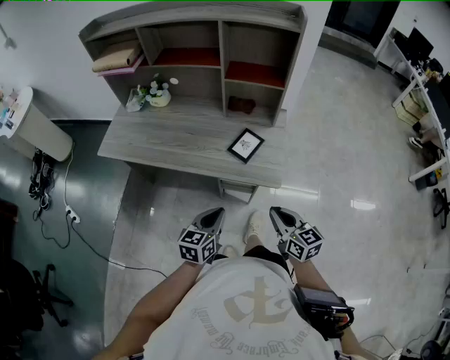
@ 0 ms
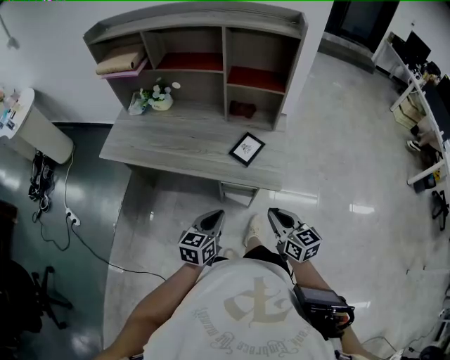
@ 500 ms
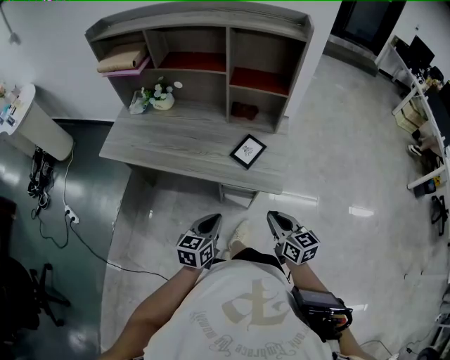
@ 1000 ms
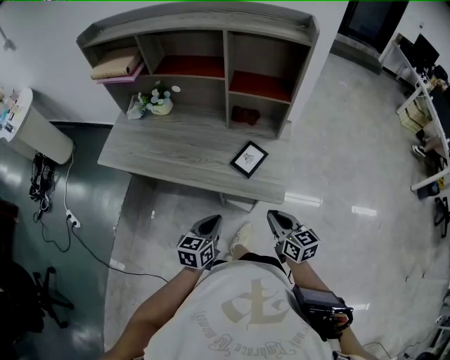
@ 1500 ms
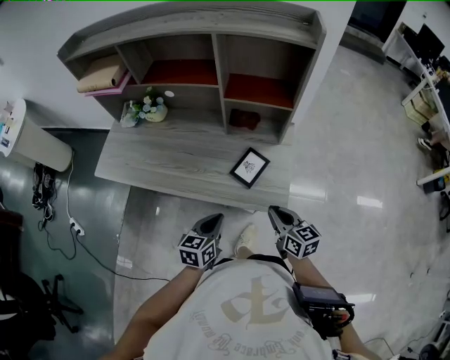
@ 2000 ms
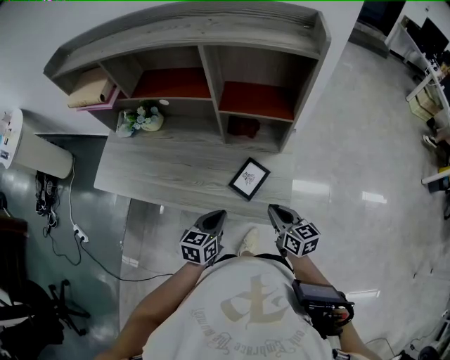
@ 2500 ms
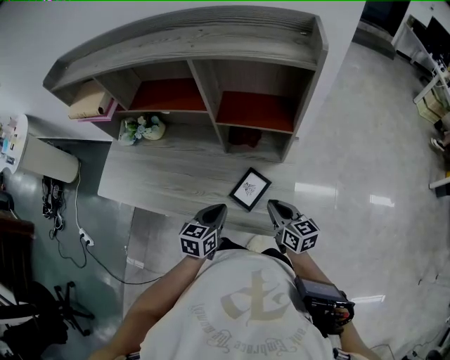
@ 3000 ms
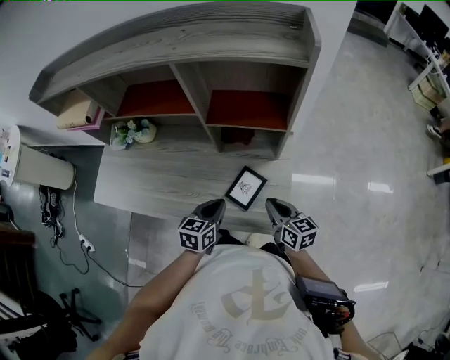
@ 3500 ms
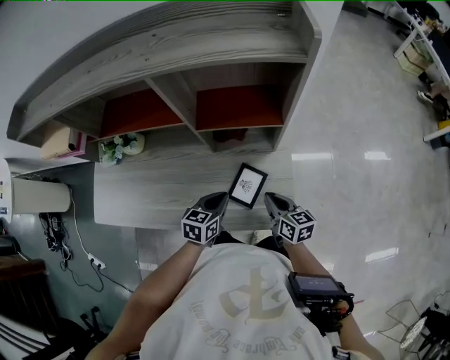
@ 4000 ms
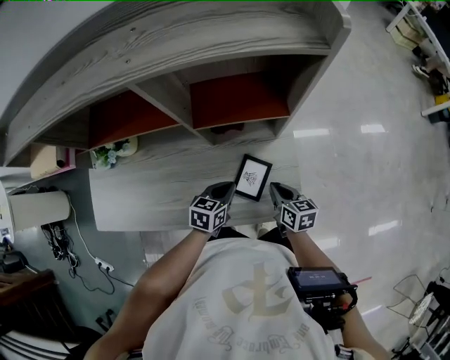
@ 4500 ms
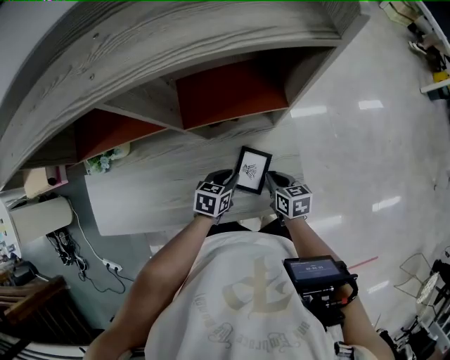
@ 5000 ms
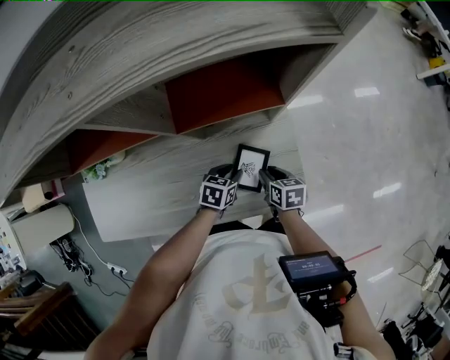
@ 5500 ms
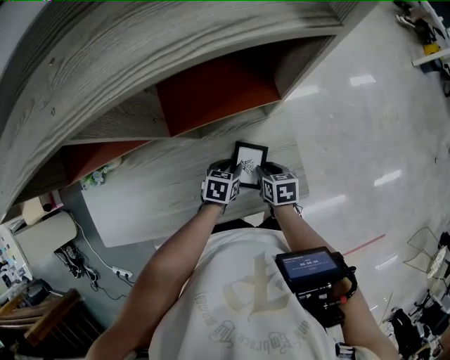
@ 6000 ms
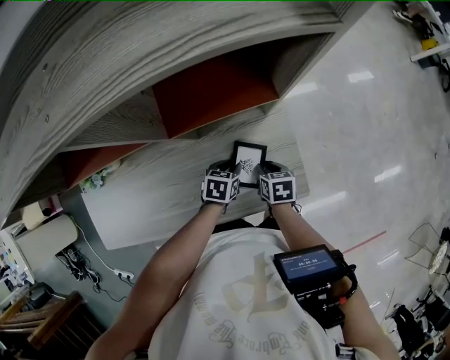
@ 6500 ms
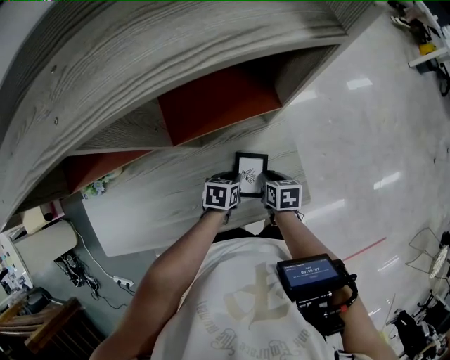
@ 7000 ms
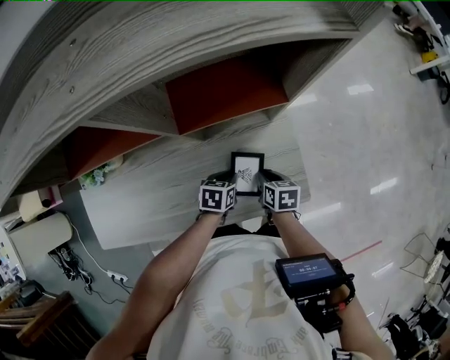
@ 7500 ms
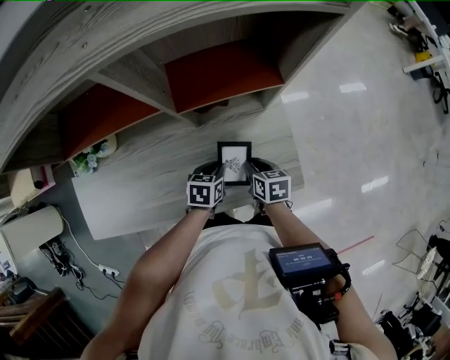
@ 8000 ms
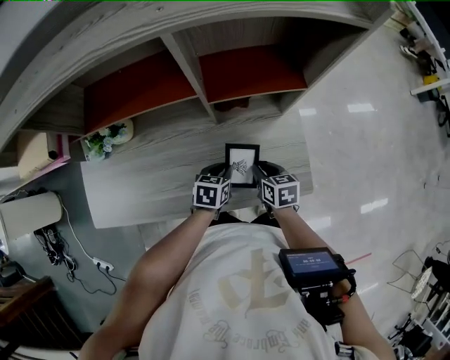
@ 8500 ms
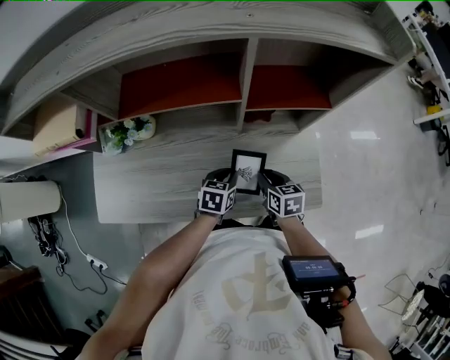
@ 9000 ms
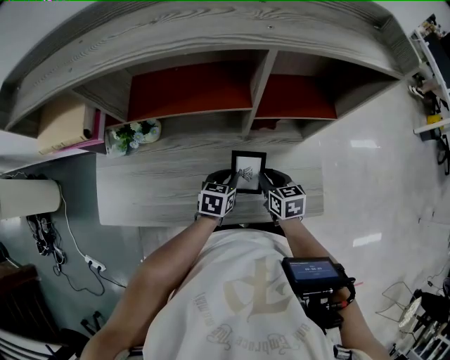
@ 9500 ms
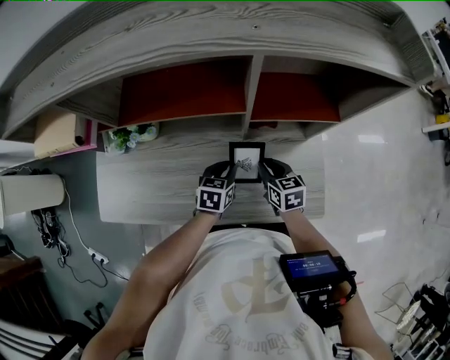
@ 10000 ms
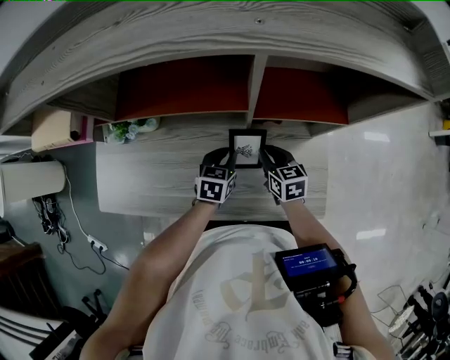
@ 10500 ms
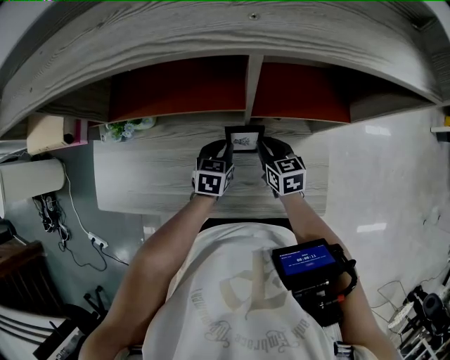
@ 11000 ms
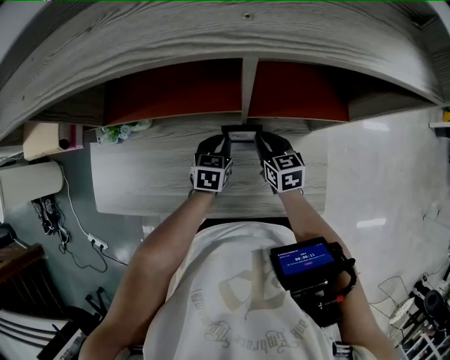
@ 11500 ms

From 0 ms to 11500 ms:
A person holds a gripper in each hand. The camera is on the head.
From 0 ms to 2000 ms: Both grippers move forward, some 15 cm.
From 2000 ms to 4000 ms: The grippers both shift forward by some 20 cm. The left gripper rotates approximately 20 degrees.
From 4000 ms to 6000 ms: The left gripper moves downward and forward, about 15 cm, turns by approximately 30 degrees, and opens, while the right gripper heads downward, covering roughly 10 cm, tilts its fingers approximately 30 degrees downward, and opens up.
From 6000 ms to 7500 ms: There are only small adjustments of the grippers.
From 7500 ms to 9500 ms: The grippers both shift to the left and upward by about 15 cm. The right gripper turns by some 30 degrees.
From 9500 ms to 11500 ms: The grippers both shift forward by some 10 cm.

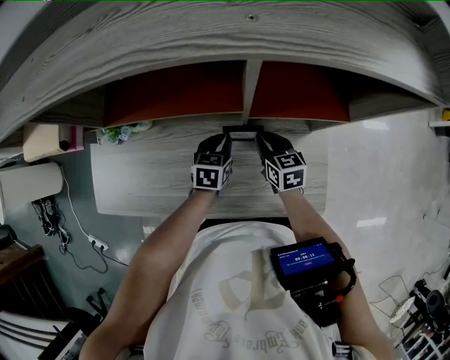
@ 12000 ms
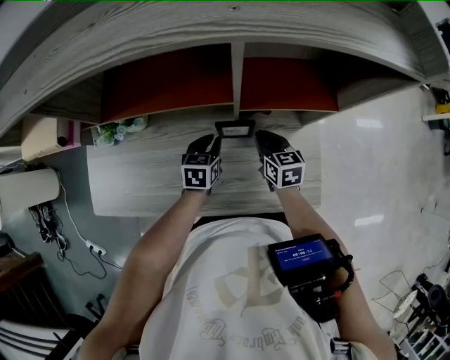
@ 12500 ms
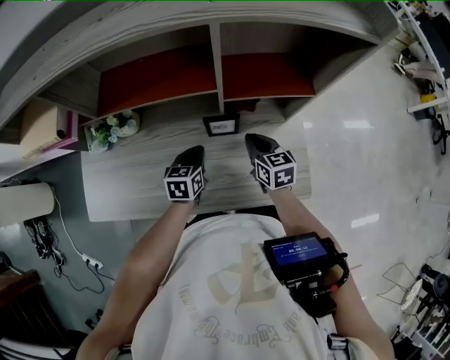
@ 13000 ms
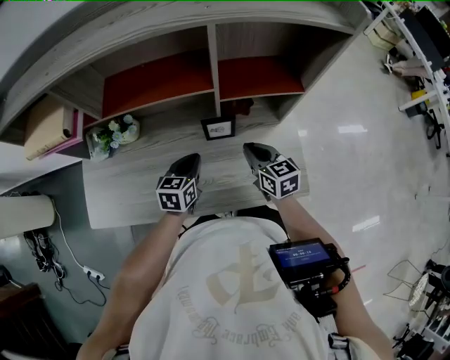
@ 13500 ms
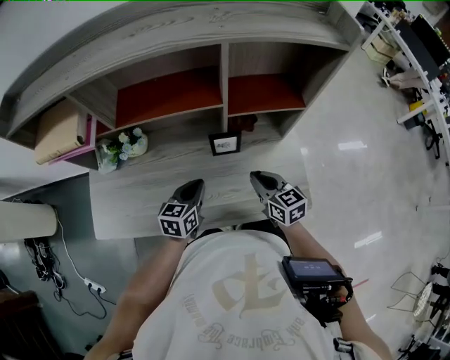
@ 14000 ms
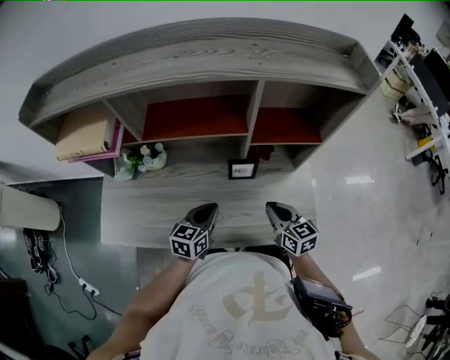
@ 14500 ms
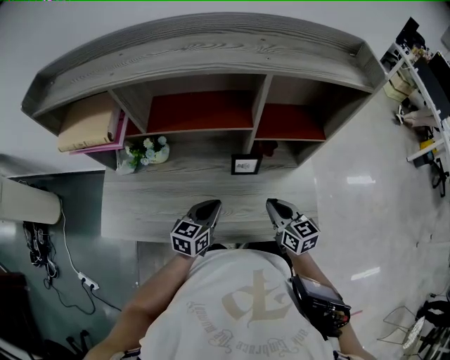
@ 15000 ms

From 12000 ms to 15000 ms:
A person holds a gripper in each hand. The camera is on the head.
From 12000 ms to 13500 ms: The two grippers go approximately 15 cm backward and upward.
From 13500 ms to 15000 ms: The grippers both shift backward by roughly 5 cm.

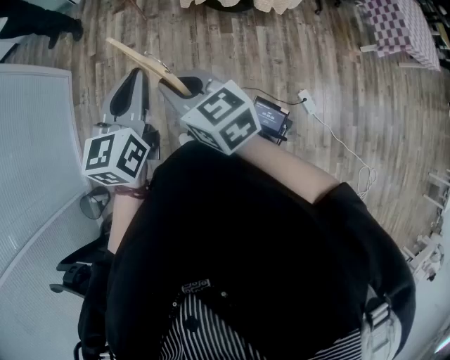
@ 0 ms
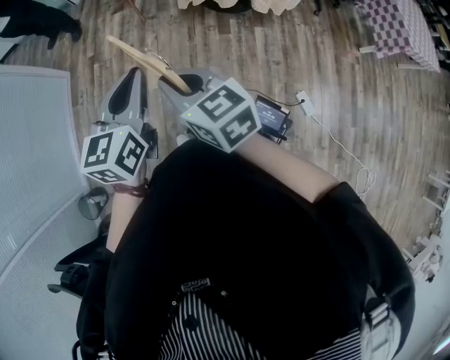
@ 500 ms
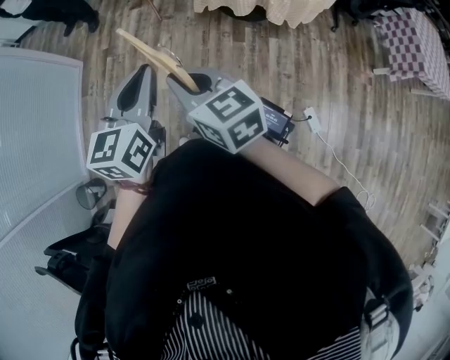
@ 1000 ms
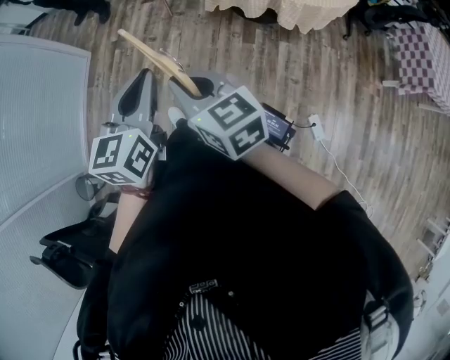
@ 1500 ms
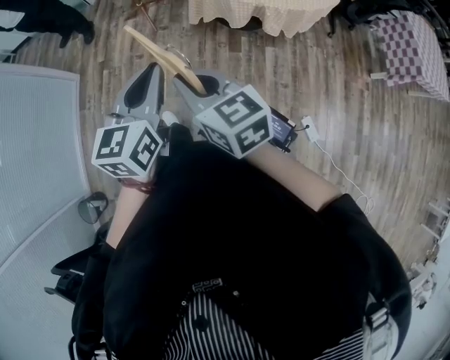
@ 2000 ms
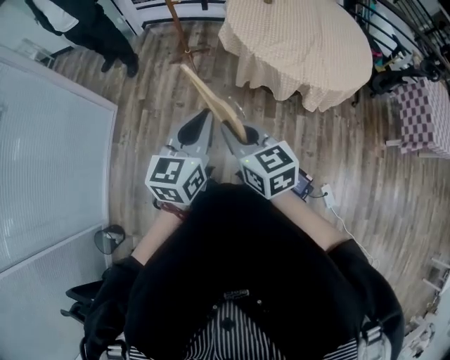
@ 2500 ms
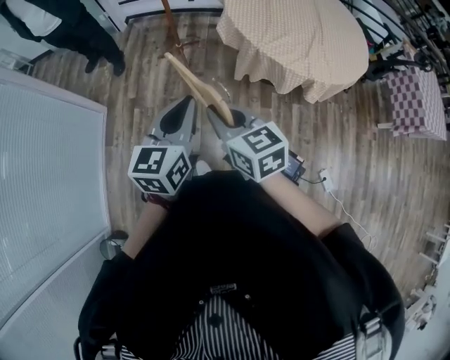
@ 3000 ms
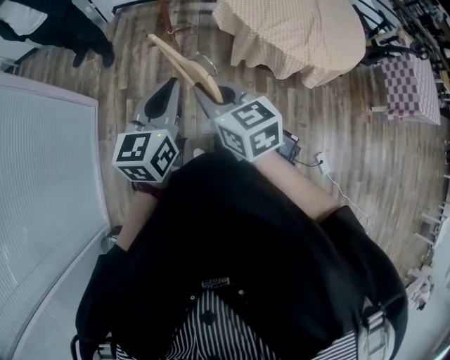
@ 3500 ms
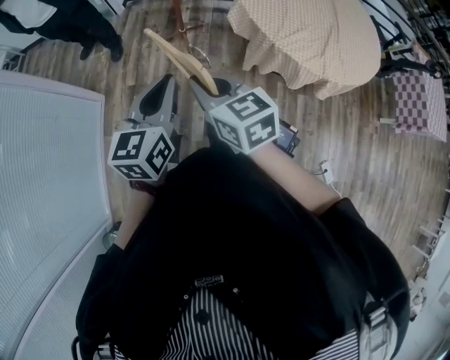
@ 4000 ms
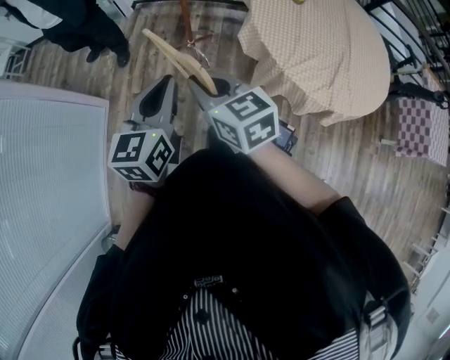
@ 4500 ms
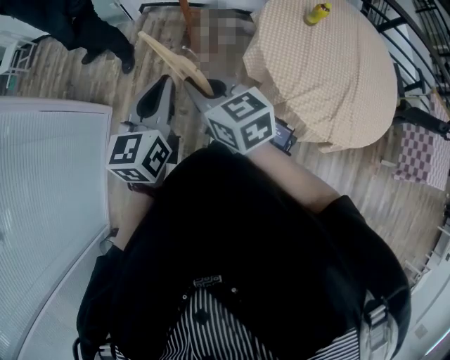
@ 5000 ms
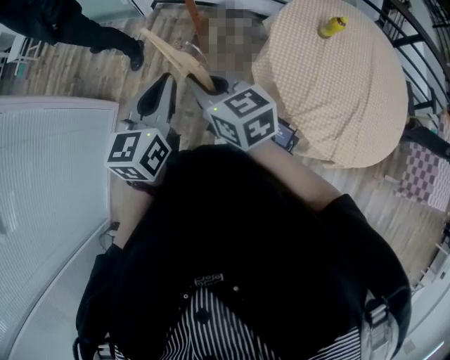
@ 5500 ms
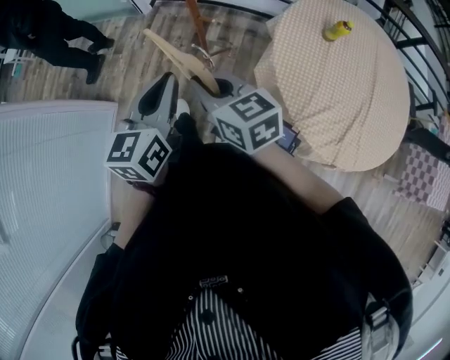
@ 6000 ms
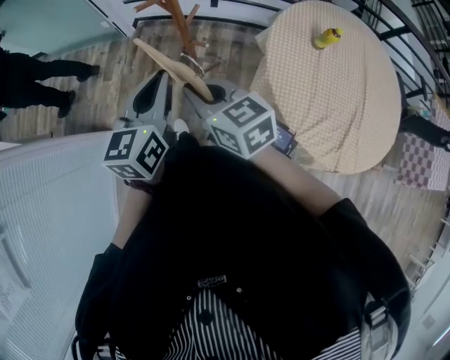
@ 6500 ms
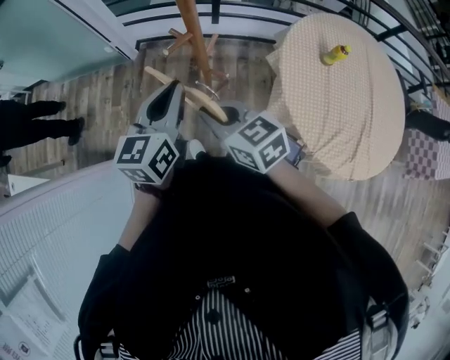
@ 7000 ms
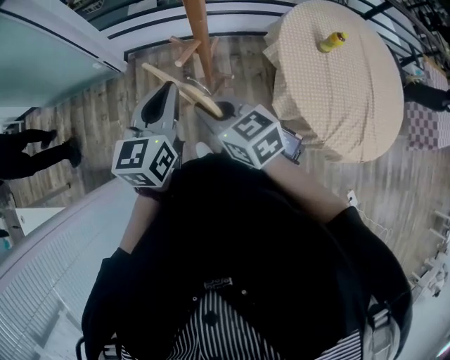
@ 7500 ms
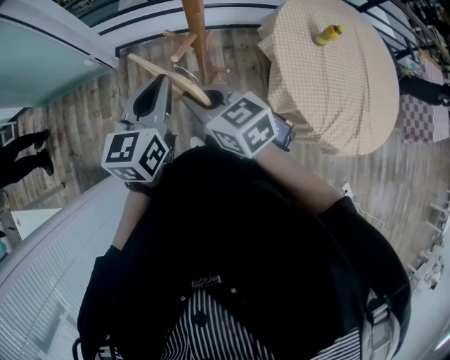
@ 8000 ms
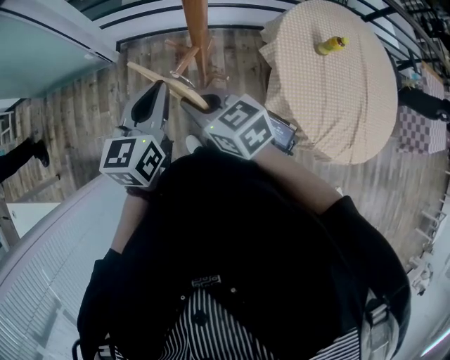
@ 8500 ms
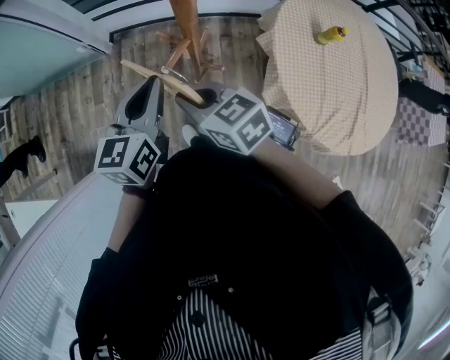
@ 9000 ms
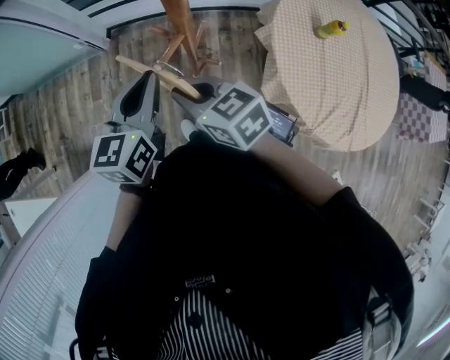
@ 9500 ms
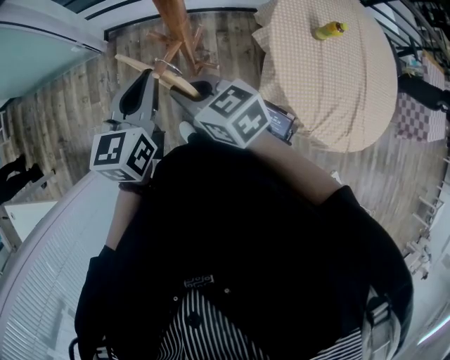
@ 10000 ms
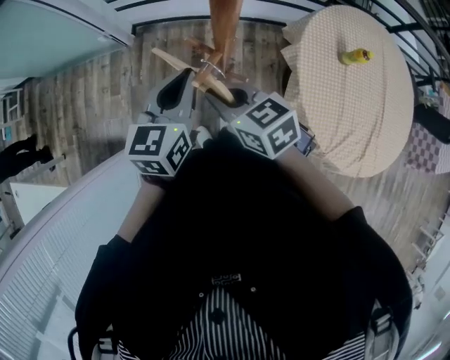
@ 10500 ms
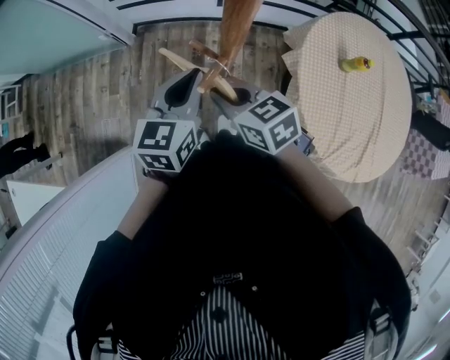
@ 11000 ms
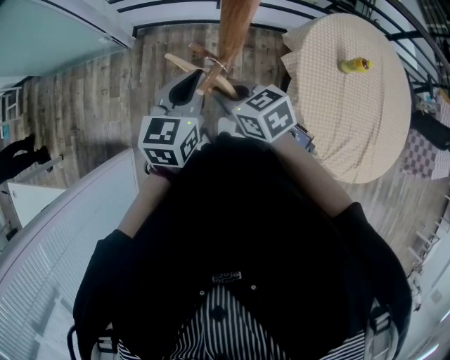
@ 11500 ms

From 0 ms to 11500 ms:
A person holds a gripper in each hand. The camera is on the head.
From 0 ms to 2000 ms: Both grippers travel together to the right and forward, some 15 cm.
From 2000 ms to 4000 ms: Both grippers are carried forward and to the left, approximately 50 cm.
From 4000 ms to 6000 ms: The two grippers travel together, forward, roughly 40 cm.
From 6000 ms to 7500 ms: The left gripper goes about 30 cm forward. The right gripper moves forward and to the left, approximately 25 cm.
From 7500 ms to 9500 ms: The grippers make only small movements.
From 9500 ms to 11500 ms: The right gripper travels downward and forward by approximately 10 cm. The left gripper moves roughly 5 cm.

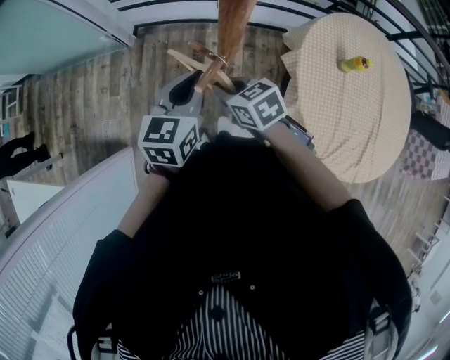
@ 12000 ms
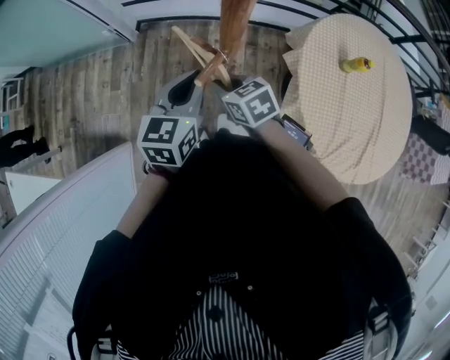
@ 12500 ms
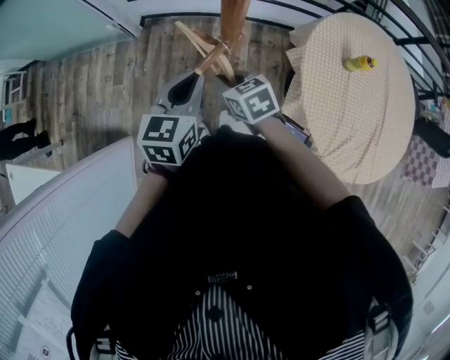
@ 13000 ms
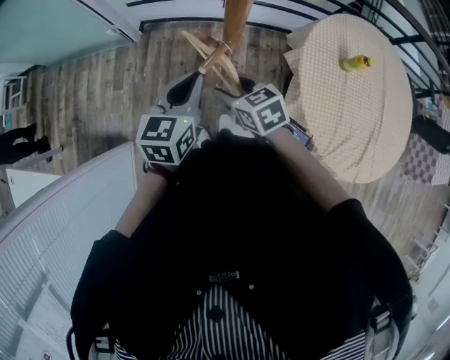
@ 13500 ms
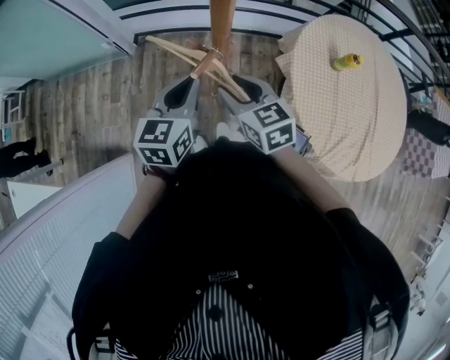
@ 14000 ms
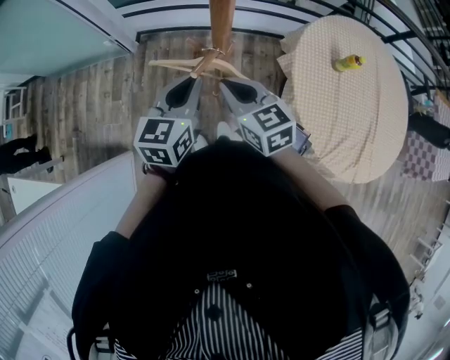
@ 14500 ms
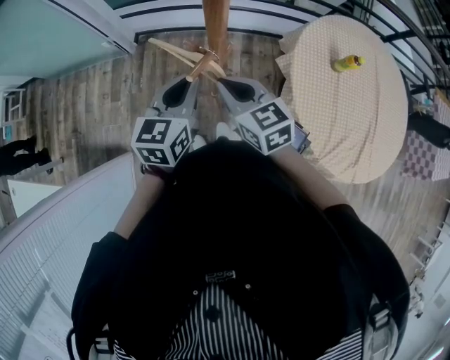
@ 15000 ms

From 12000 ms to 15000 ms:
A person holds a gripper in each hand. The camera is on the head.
From 12000 ms to 13500 ms: The right gripper opens up.
From 13500 ms to 15000 ms: The right gripper heads upward, covering roughly 10 cm, and closes up.
